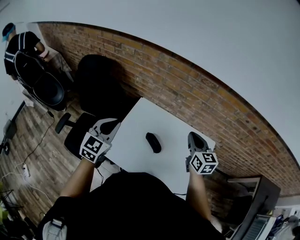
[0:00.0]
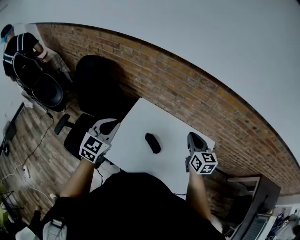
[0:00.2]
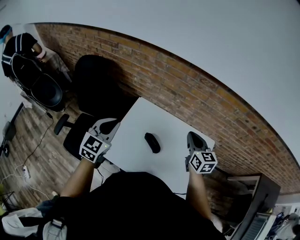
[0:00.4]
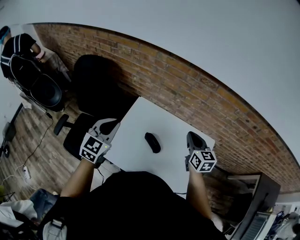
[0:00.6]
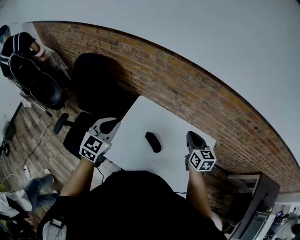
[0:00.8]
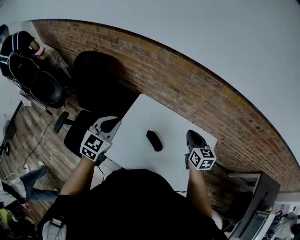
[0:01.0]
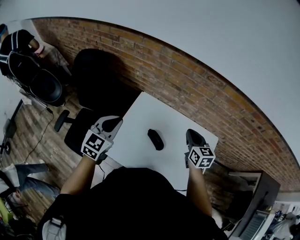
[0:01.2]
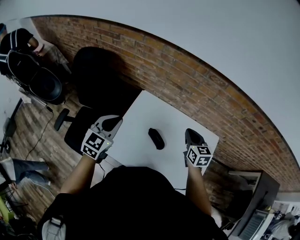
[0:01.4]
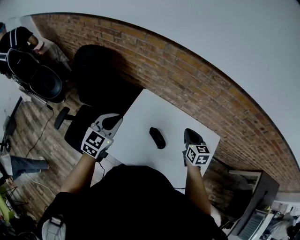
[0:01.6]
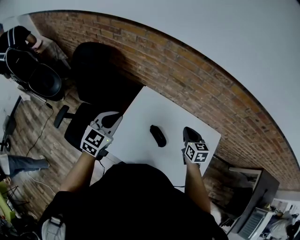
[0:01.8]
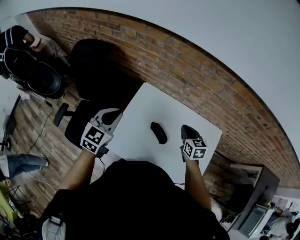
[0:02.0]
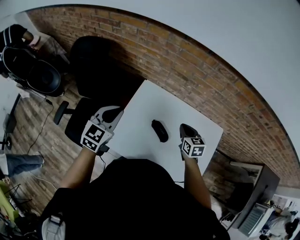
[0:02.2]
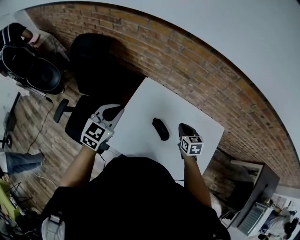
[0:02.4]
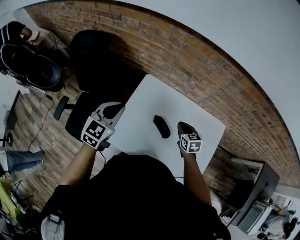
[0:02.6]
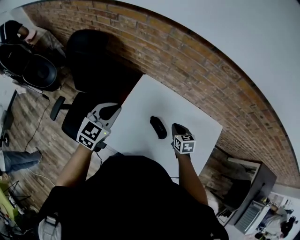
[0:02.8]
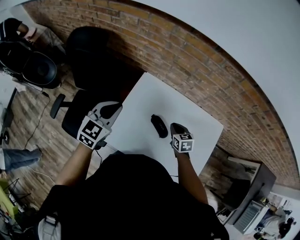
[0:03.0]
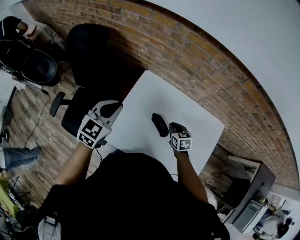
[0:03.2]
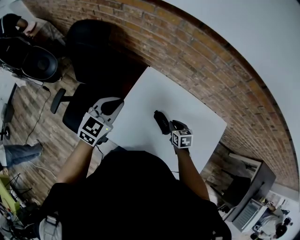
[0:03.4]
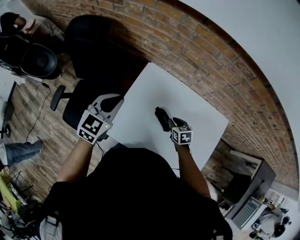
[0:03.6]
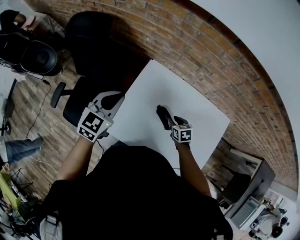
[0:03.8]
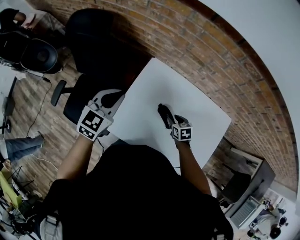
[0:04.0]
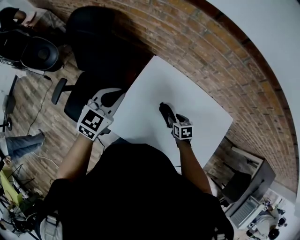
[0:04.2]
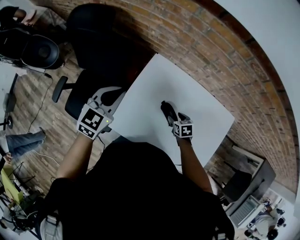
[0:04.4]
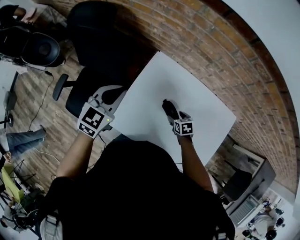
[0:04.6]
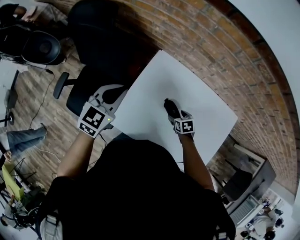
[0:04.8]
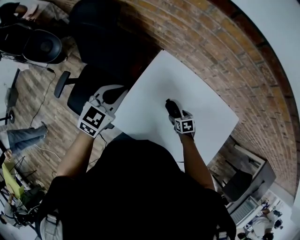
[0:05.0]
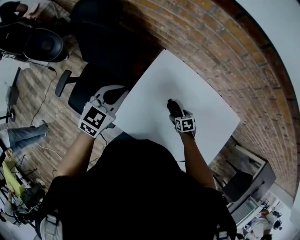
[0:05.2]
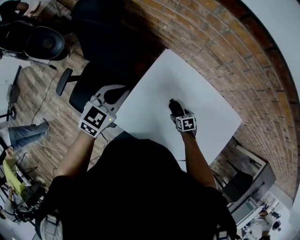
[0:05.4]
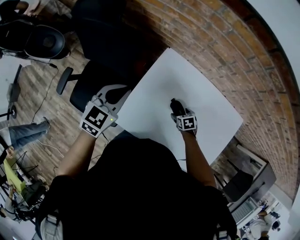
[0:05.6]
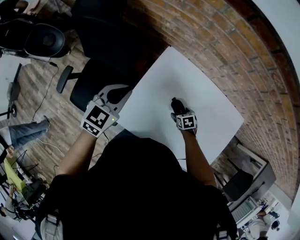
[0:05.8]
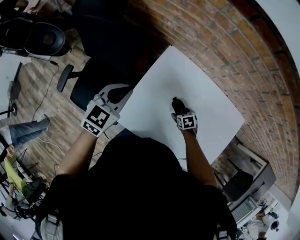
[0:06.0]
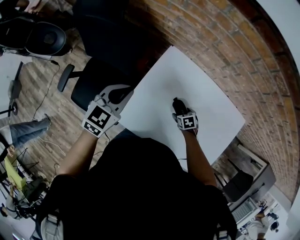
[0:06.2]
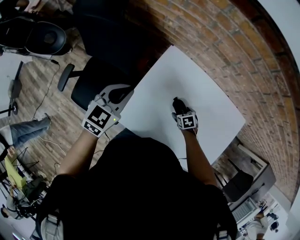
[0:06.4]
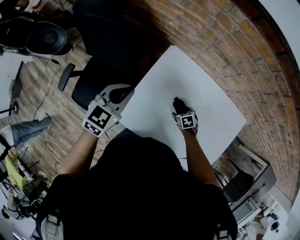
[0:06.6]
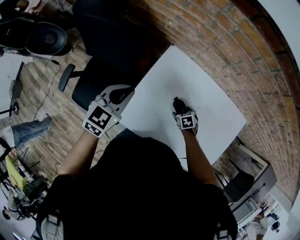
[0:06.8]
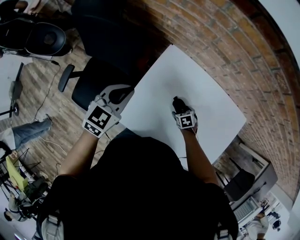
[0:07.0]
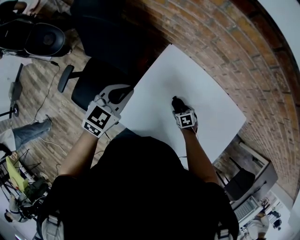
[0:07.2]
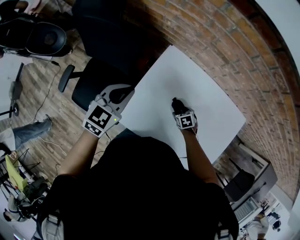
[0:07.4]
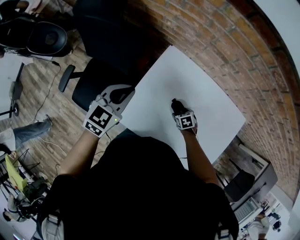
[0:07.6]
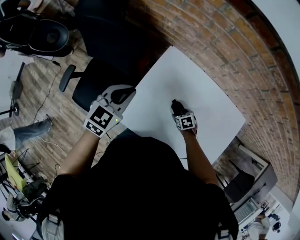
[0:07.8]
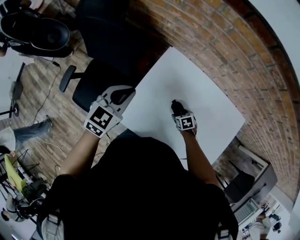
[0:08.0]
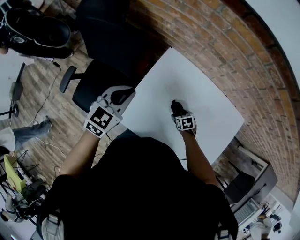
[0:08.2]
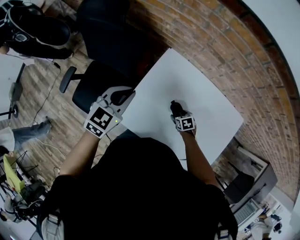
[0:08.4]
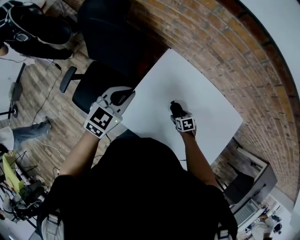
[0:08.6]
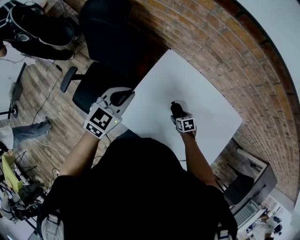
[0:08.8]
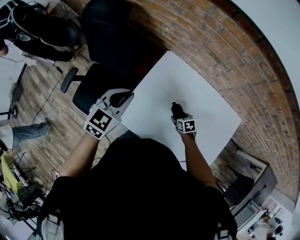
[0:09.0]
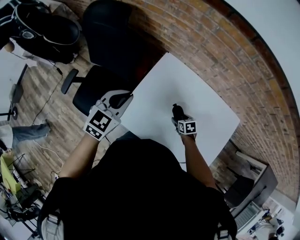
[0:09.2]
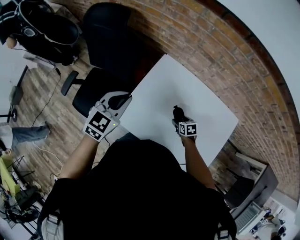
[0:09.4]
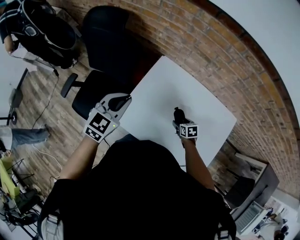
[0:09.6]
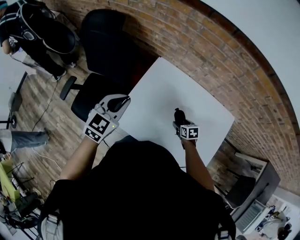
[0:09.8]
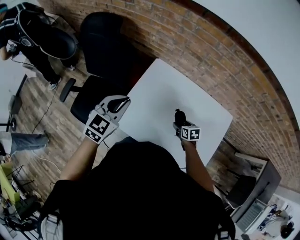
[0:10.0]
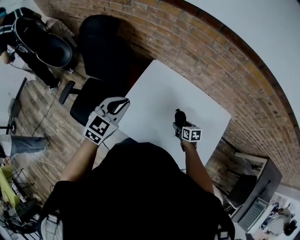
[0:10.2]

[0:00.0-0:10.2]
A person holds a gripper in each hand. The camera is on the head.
0:00.0 to 0:01.4: The right gripper travels downward by about 10 cm; the left gripper moves some 5 cm.
0:01.4 to 0:03.0: The left gripper changes place by approximately 5 cm, while the right gripper goes some 15 cm downward, and swivels roughly 20 degrees.
0:03.0 to 0:04.4: The left gripper ends up approximately 5 cm from where it was. Meanwhile the right gripper is displaced downward by roughly 10 cm, and opens.
0:04.4 to 0:05.8: The right gripper travels downward by approximately 10 cm.
0:05.8 to 0:07.2: The grippers stay close to where they were, moving slightly.
0:07.2 to 0:08.8: The left gripper ends up roughly 5 cm from where it was.
0:08.8 to 0:10.2: The right gripper shifts roughly 15 cm upward, to the right and backward, and rotates some 20 degrees. The left gripper heads backward and upward, covering about 10 cm.

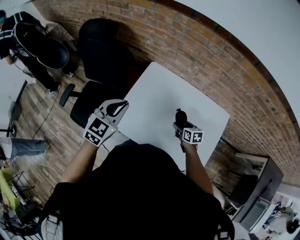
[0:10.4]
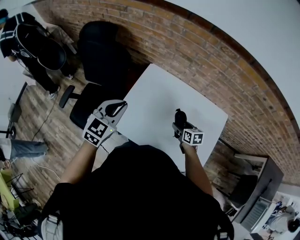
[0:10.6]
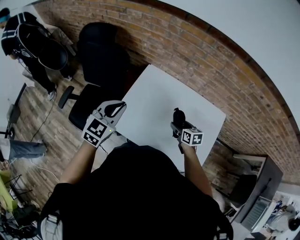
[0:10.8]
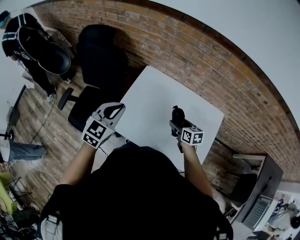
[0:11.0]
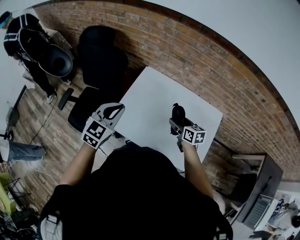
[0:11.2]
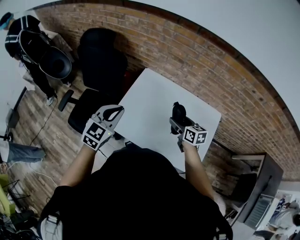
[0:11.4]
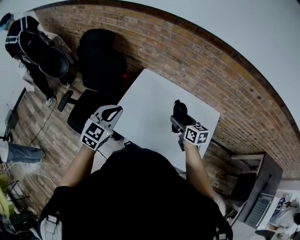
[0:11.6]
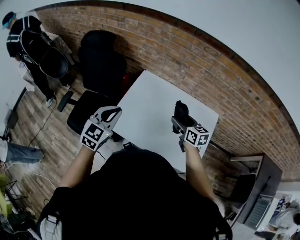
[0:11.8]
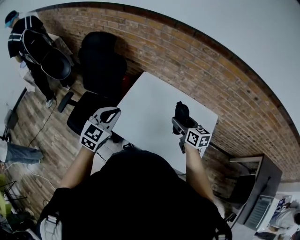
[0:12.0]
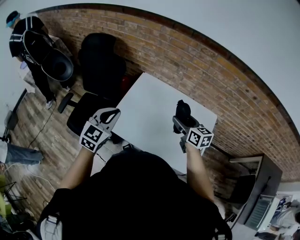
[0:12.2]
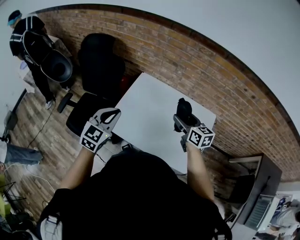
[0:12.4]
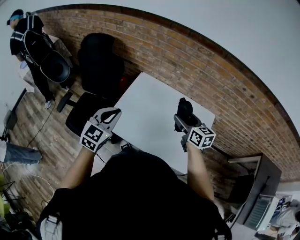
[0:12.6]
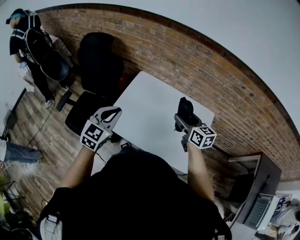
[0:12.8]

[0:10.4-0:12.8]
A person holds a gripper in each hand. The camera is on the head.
0:10.4 to 0:11.6: The right gripper goes approximately 15 cm upward, and rotates roughly 20 degrees. Meanwhile the left gripper shifts roughly 10 cm backward.
0:11.6 to 0:12.8: The right gripper travels upward by approximately 10 cm. The left gripper ends up some 5 cm from where it was.

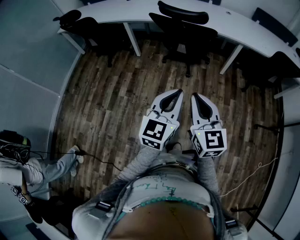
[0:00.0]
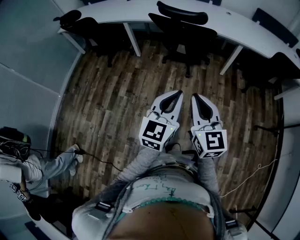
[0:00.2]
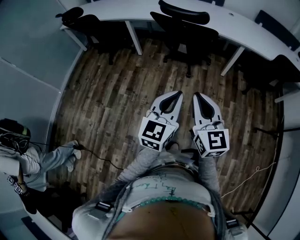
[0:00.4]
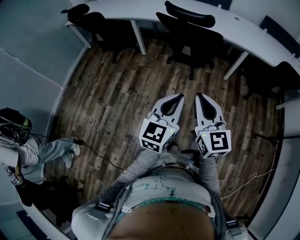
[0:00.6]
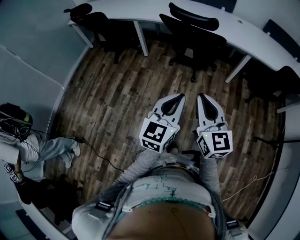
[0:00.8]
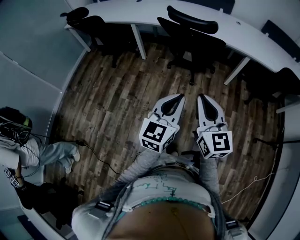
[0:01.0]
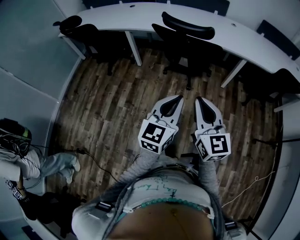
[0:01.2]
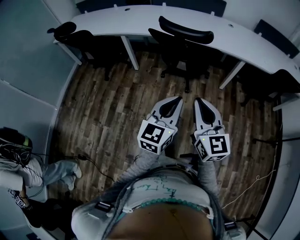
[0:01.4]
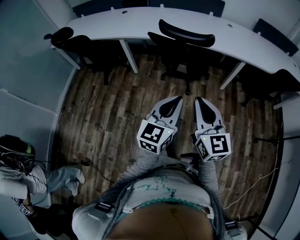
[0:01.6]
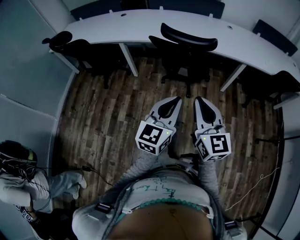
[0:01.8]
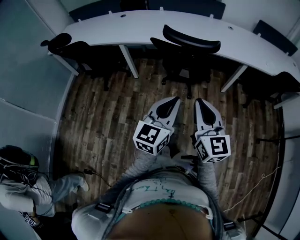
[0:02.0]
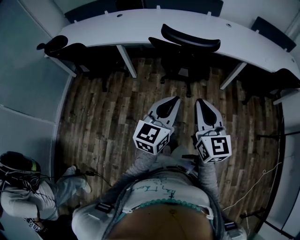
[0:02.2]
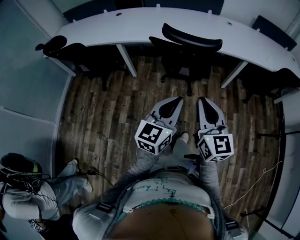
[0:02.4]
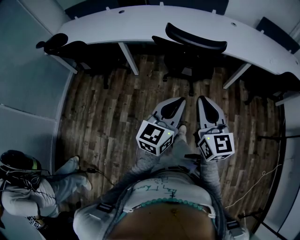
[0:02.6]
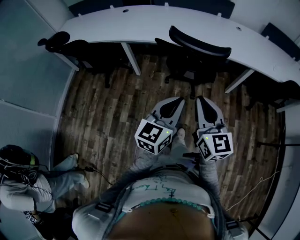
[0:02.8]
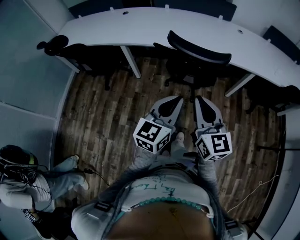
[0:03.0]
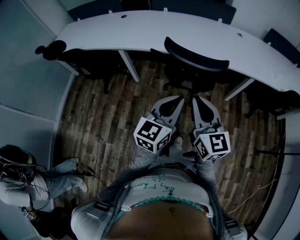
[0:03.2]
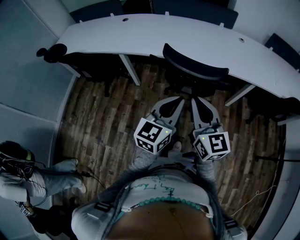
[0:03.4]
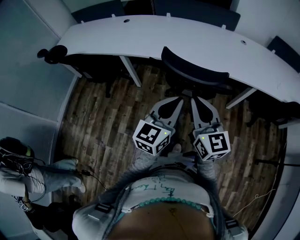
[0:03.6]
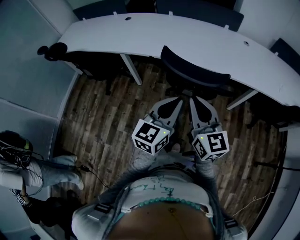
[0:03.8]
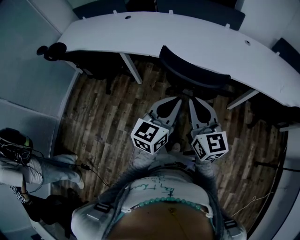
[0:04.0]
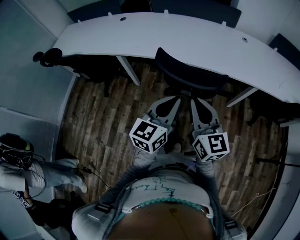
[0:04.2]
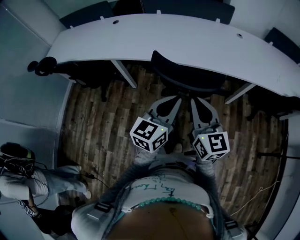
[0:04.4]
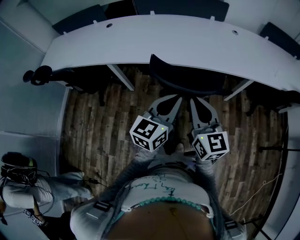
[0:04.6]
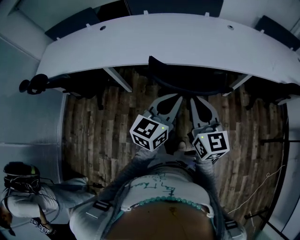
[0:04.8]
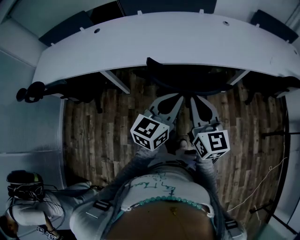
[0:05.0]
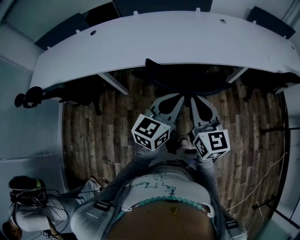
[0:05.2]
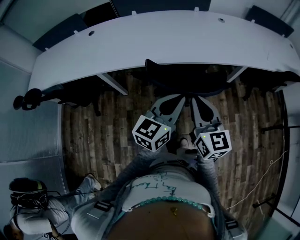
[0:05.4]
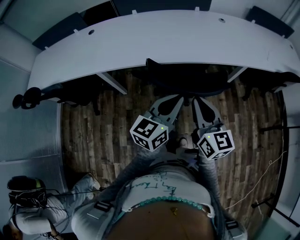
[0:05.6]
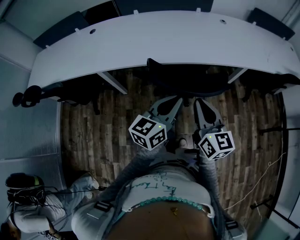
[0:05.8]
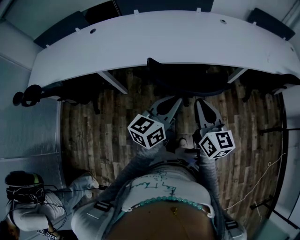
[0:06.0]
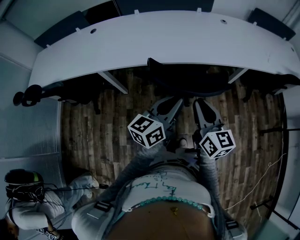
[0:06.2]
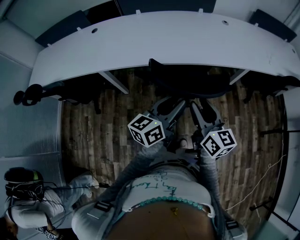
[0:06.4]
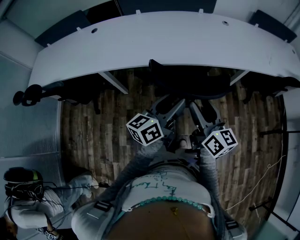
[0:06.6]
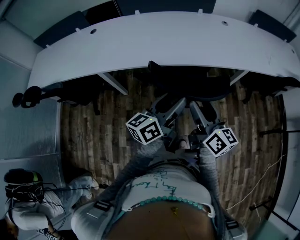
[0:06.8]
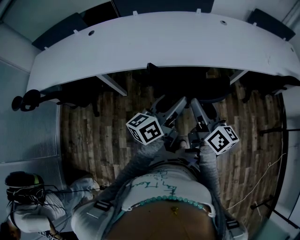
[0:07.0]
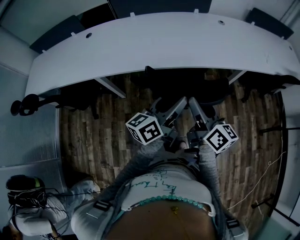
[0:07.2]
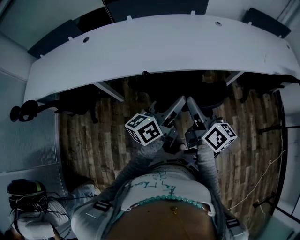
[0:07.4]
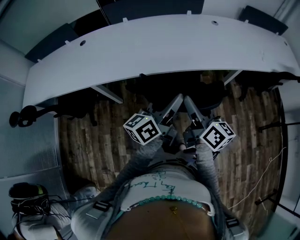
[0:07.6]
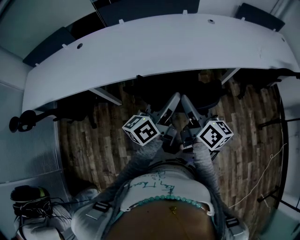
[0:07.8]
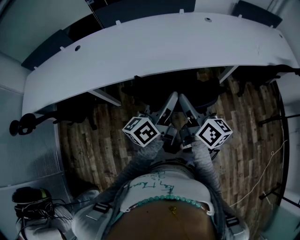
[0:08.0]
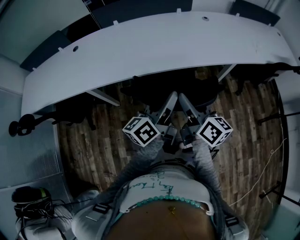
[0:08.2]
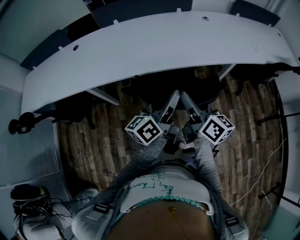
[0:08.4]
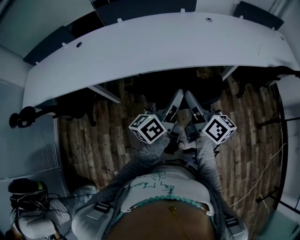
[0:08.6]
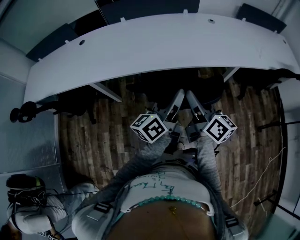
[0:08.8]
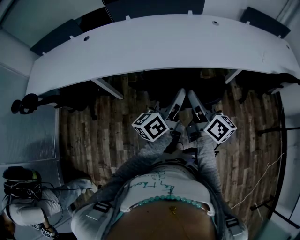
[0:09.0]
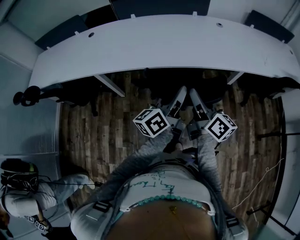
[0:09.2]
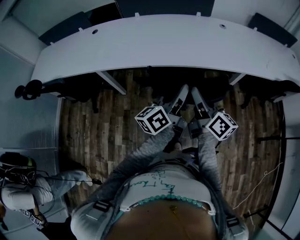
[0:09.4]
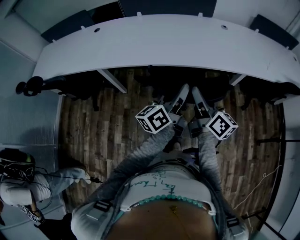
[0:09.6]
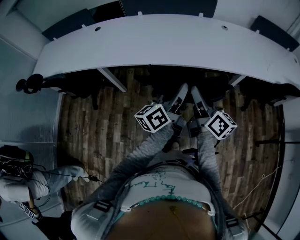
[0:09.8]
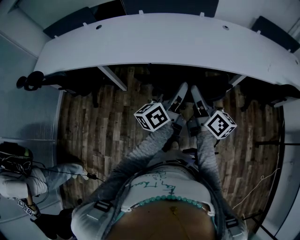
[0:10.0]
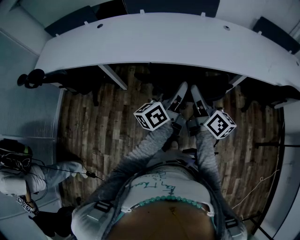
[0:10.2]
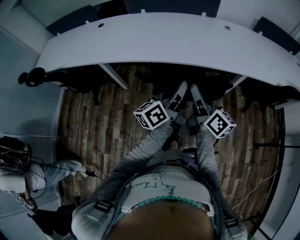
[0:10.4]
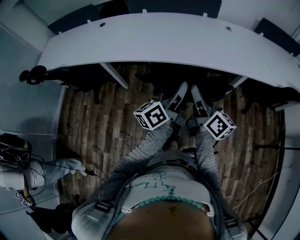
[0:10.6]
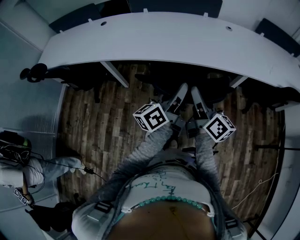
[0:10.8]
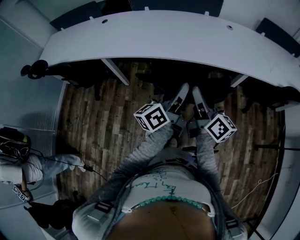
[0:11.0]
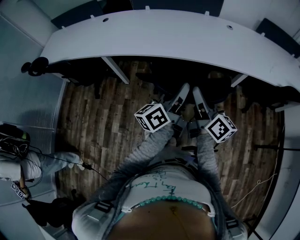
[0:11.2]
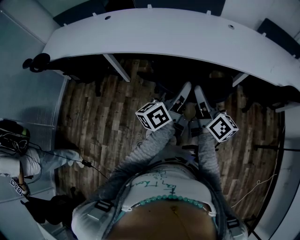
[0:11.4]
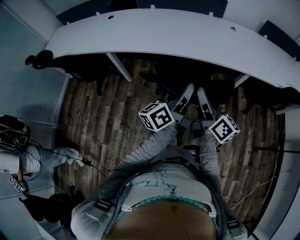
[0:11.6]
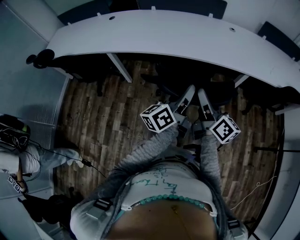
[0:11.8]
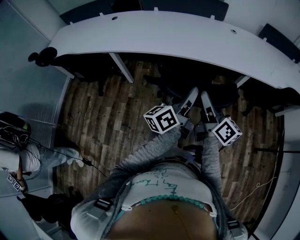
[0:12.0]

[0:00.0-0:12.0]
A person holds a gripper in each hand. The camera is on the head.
0:00.0 to 0:01.6: The two grippers go some 15 cm forward.
0:01.6 to 0:03.0: Both grippers move forward and to the left, roughly 15 cm.
0:03.0 to 0:04.4: Both grippers move forward, some 15 cm.
0:04.4 to 0:06.0: The right gripper changes place by roughly 5 cm. Meanwhile the left gripper moves to the left, about 5 cm, and turns by about 20 degrees.
0:06.0 to 0:07.6: Both grippers move forward, some 5 cm. The right gripper rotates about 30 degrees, and opens. Meanwhile the left gripper opens.
0:07.6 to 0:09.0: The left gripper ends up some 5 cm from where it was, and closes.
0:09.0 to 0:10.4: The grippers make only small movements.
0:10.4 to 0:12.0: Both grippers move backward, some 10 cm.
